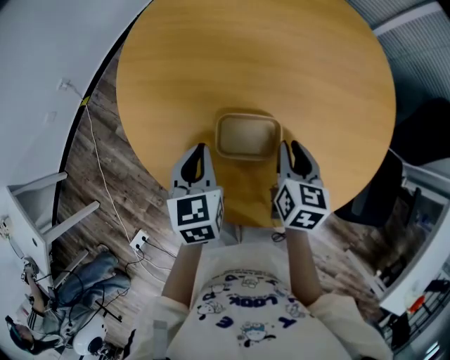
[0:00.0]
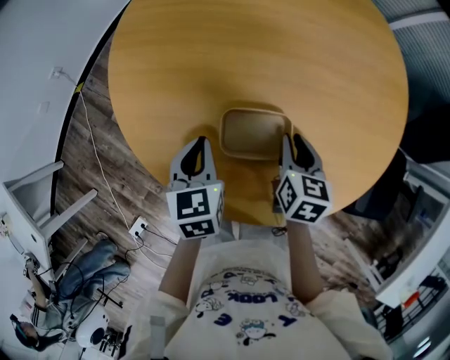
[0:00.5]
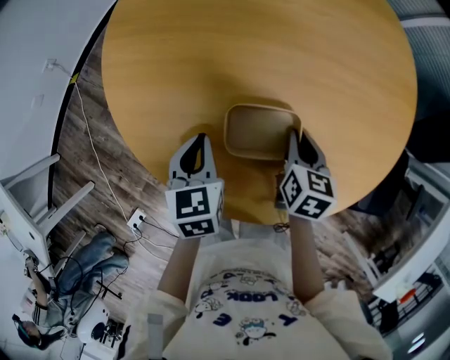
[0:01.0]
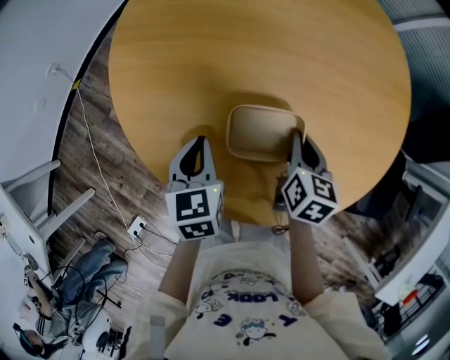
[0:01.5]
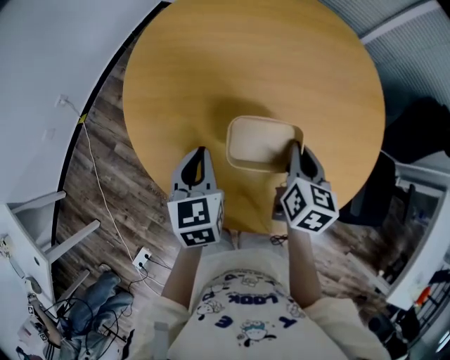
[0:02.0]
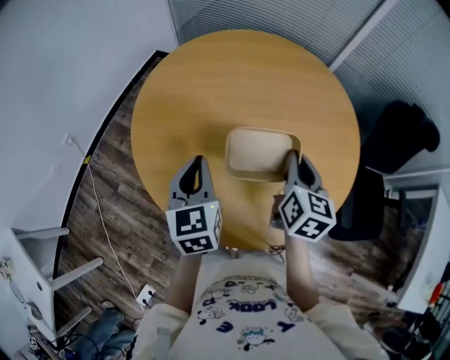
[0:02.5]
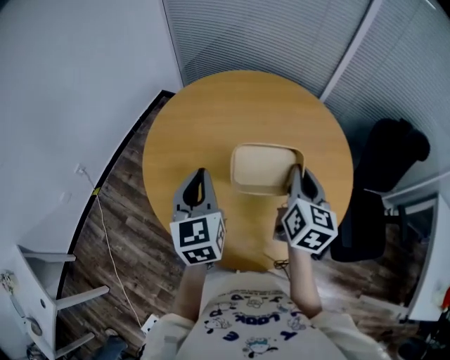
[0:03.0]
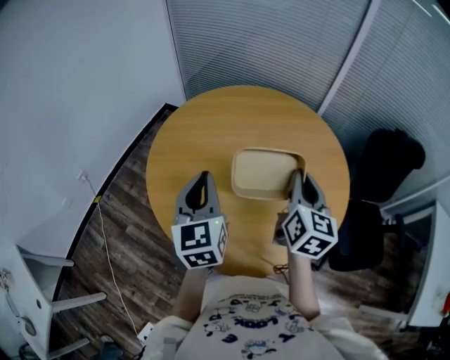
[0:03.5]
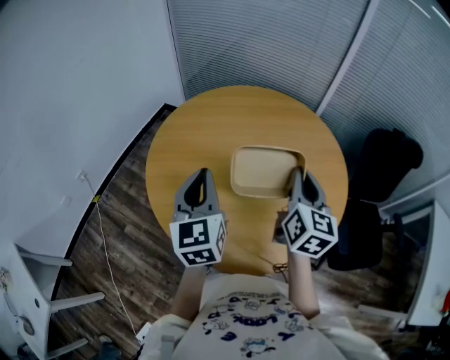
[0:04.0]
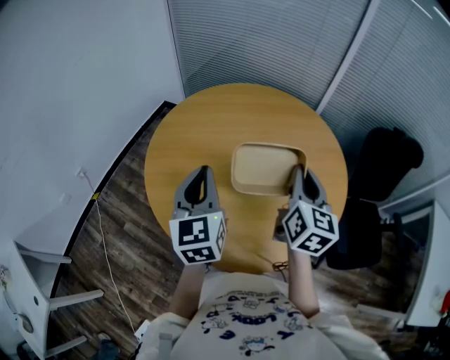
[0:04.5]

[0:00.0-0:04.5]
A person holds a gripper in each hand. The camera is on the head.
0:00.0 to 0:02.0: The right gripper travels upward by roughly 5 cm.
0:02.0 to 0:04.5: Both grippers move upward, some 20 cm. The right gripper rotates roughly 30 degrees; the left gripper turns by about 30 degrees.

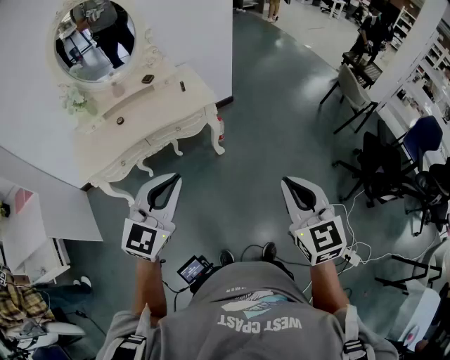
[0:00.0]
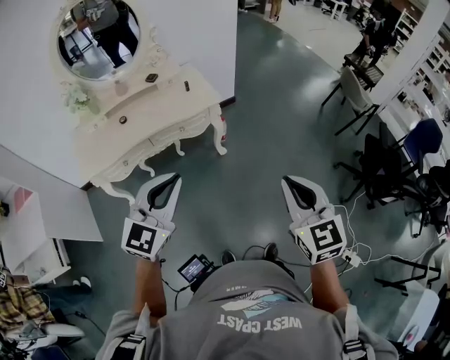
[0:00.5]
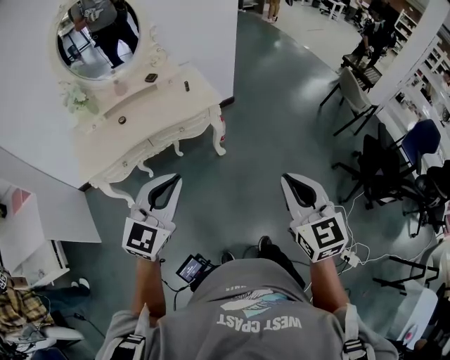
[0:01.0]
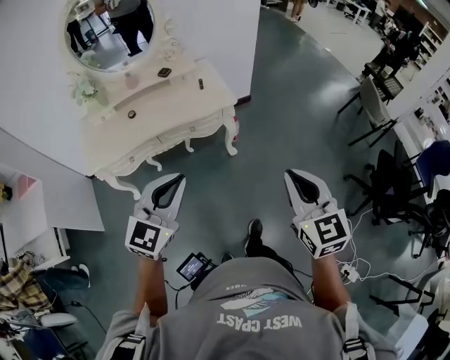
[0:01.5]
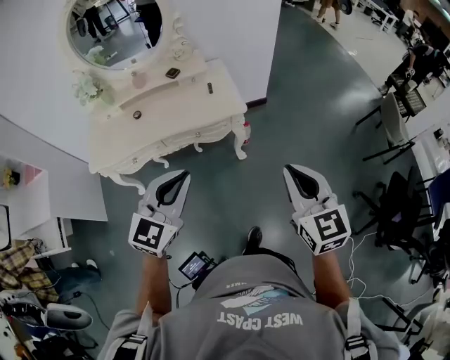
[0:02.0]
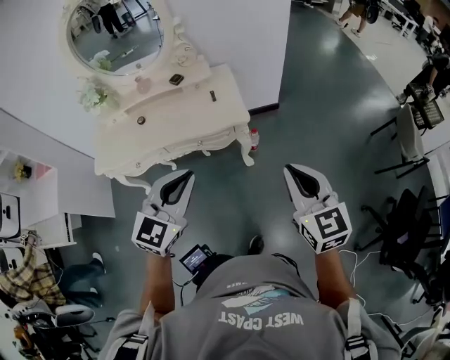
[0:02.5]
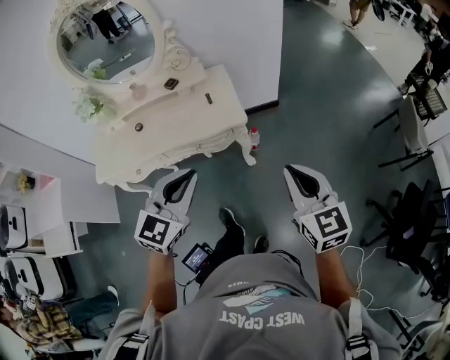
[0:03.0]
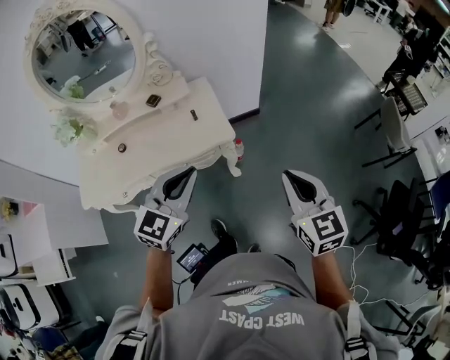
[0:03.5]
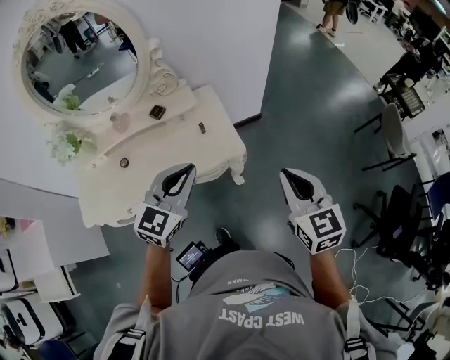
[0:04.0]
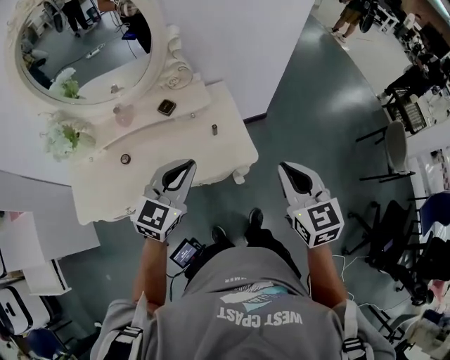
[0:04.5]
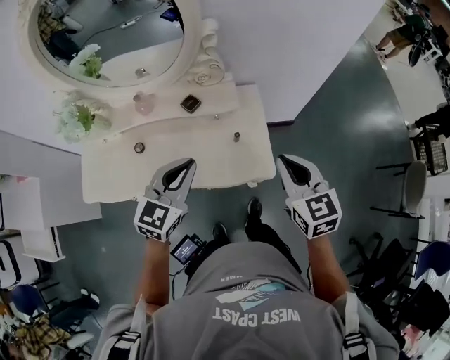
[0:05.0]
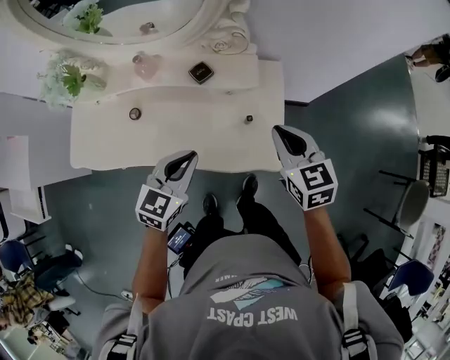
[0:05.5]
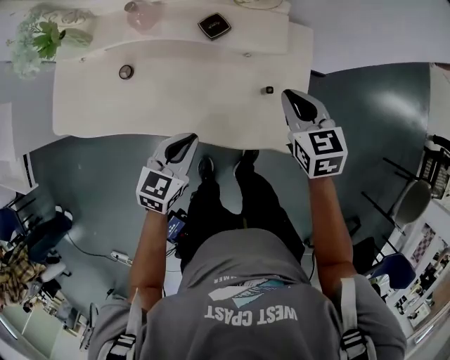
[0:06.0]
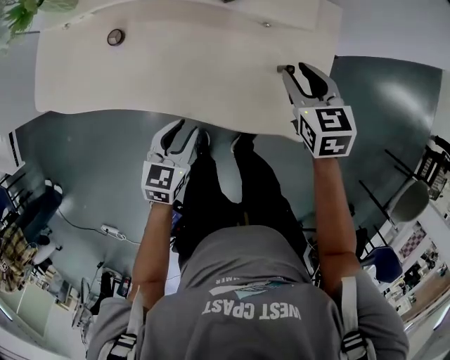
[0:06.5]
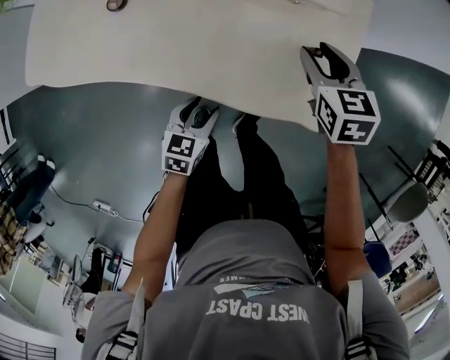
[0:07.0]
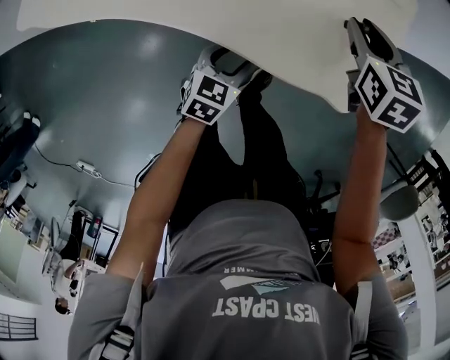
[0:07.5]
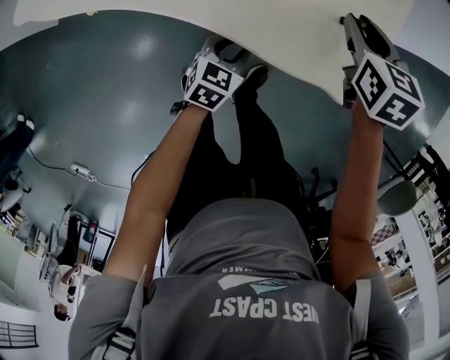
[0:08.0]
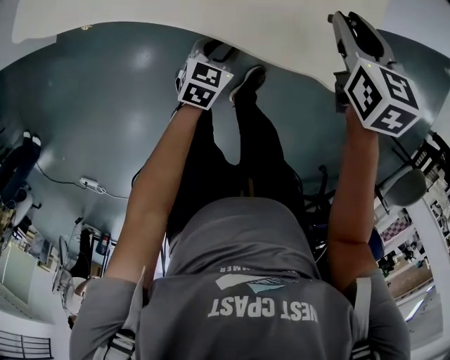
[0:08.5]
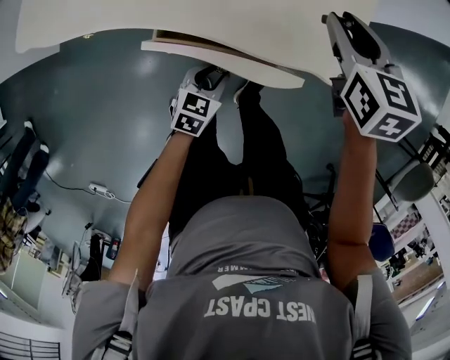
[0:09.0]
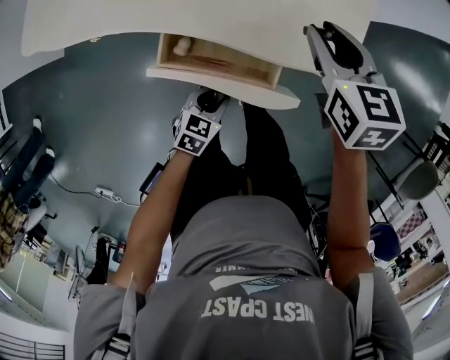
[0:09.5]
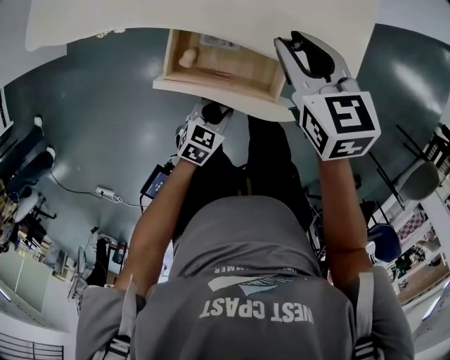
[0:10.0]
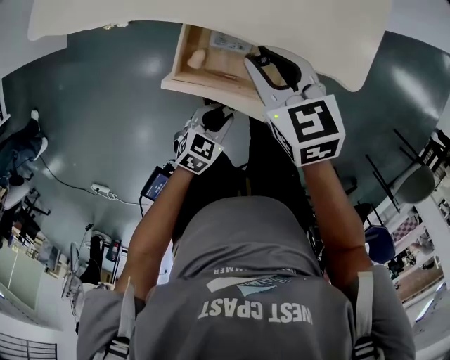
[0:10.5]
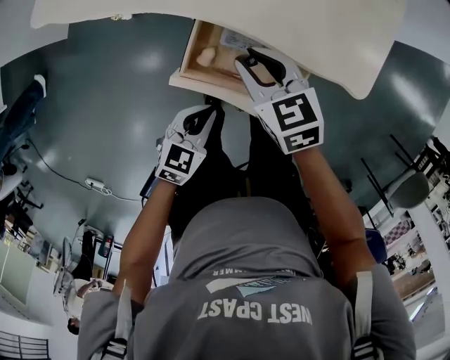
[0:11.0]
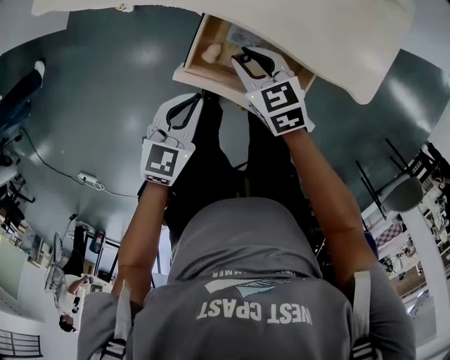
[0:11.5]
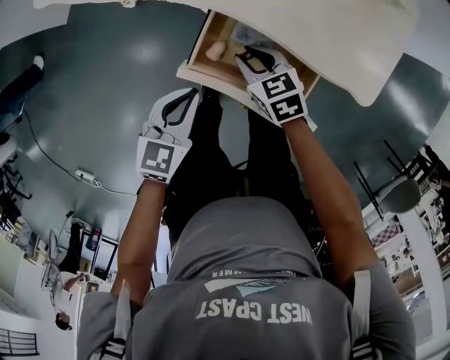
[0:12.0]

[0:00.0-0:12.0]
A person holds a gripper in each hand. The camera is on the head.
0:00.0 to 0:02.0: The two grippers go about 20 cm forward.
0:02.0 to 0:04.0: The grippers both shift forward by about 30 cm.
0:04.0 to 0:06.0: The left gripper is displaced downward by about 30 cm, and swivels approximately 40 degrees. The right gripper shifts by about 50 cm, and changes its angle by some 40 degrees.
0:06.0 to 0:08.0: The left gripper travels downward by about 20 cm, and opens its fingers. The right gripper heads downward, covering approximately 10 cm, and opens its fingers.
0:08.0 to 0:10.0: The right gripper shifts some 15 cm backward, to the left and upward. The left gripper goes roughly 20 cm backward.
0:10.0 to 0:12.0: The right gripper goes roughly 15 cm downward, and rotates roughly 20 degrees; the left gripper changes place by roughly 20 cm, rotates roughly 30 degrees, and closes its fingers.

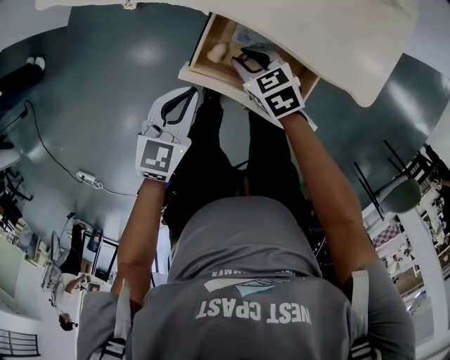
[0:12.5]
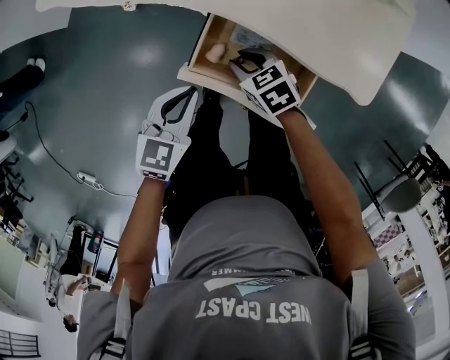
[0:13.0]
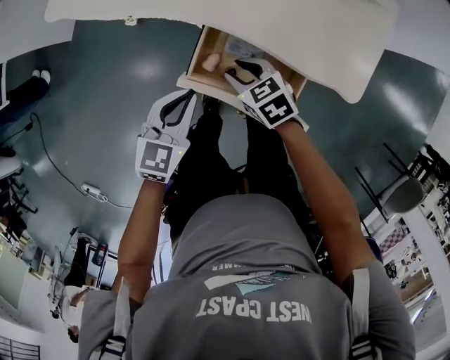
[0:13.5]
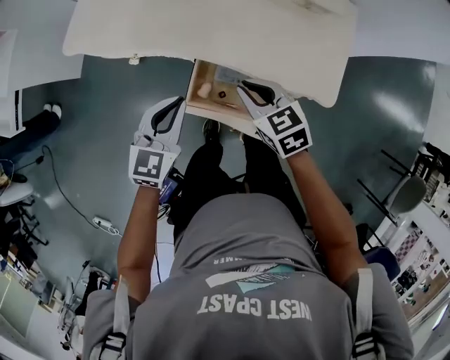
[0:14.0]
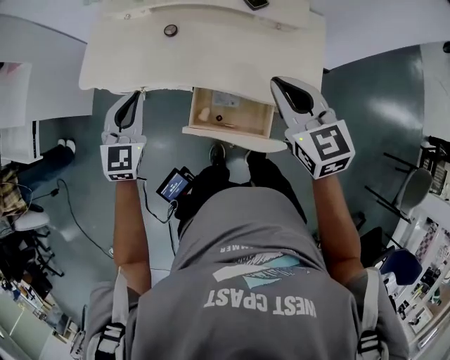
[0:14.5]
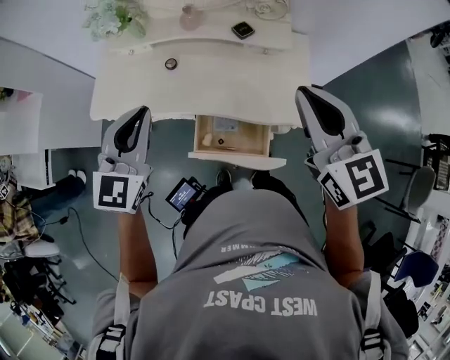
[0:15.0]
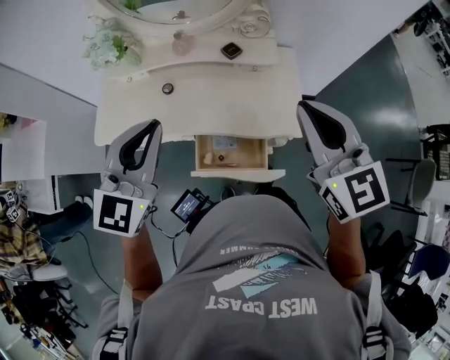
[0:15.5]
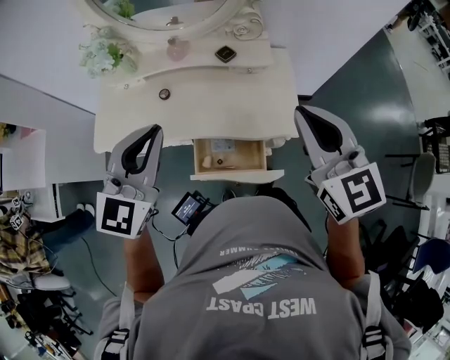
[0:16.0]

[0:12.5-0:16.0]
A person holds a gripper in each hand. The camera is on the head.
0:12.5 to 0:14.5: The left gripper travels upward and forward by roughly 30 cm, and changes its angle by about 40 degrees. Meanwhile the right gripper moves upward, roughly 40 cm, swivels some 40 degrees, and closes its fingers.
0:14.5 to 0:16.0: The left gripper is displaced upward and to the right by some 25 cm, and swivels roughly 30 degrees. Meanwhile the right gripper travels upward by roughly 20 cm.

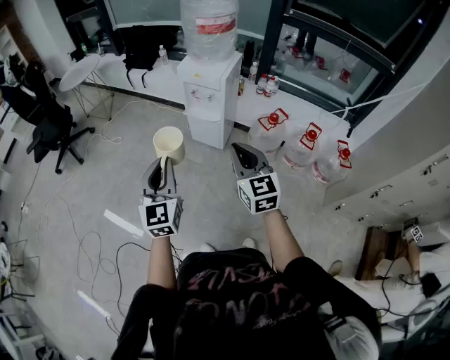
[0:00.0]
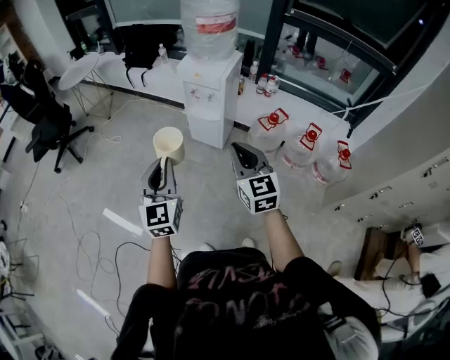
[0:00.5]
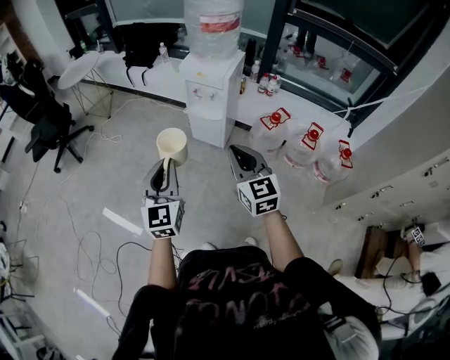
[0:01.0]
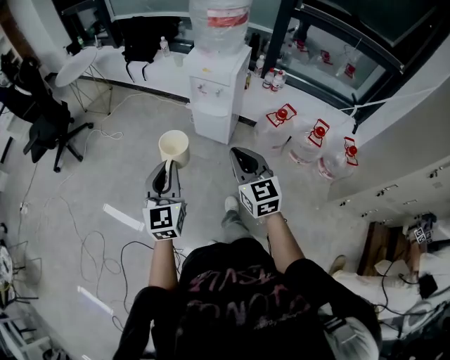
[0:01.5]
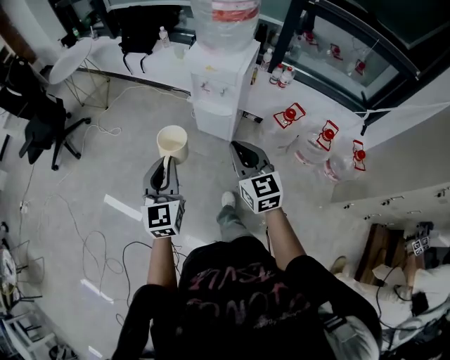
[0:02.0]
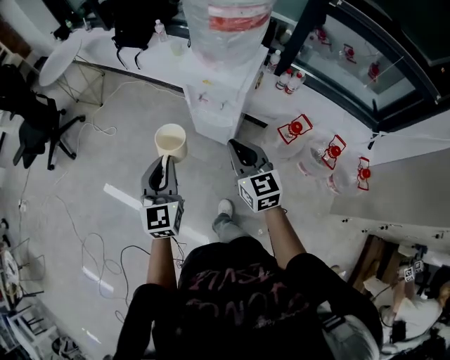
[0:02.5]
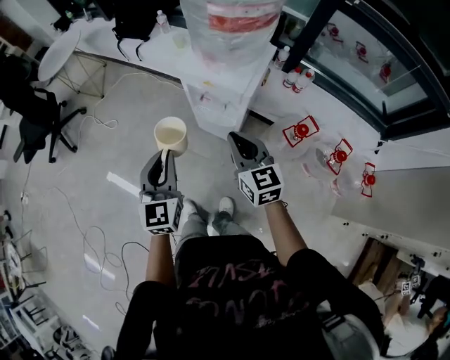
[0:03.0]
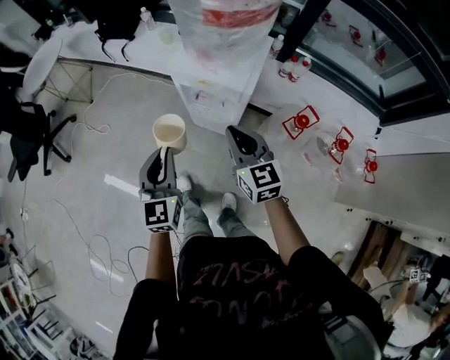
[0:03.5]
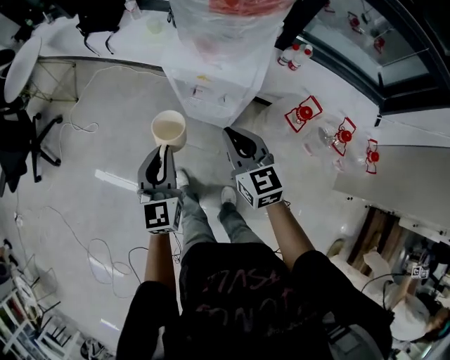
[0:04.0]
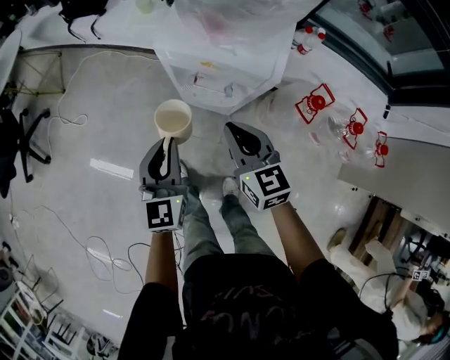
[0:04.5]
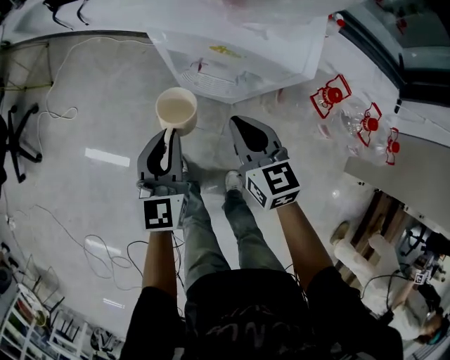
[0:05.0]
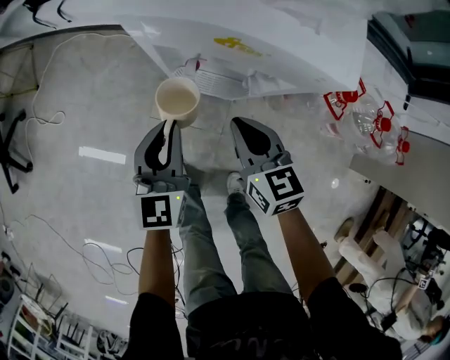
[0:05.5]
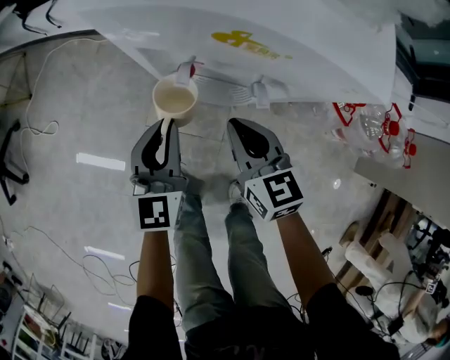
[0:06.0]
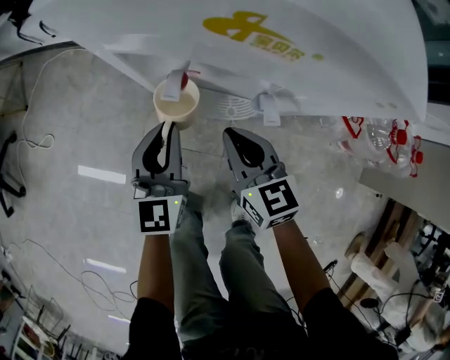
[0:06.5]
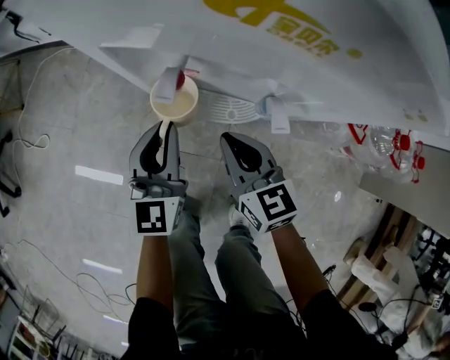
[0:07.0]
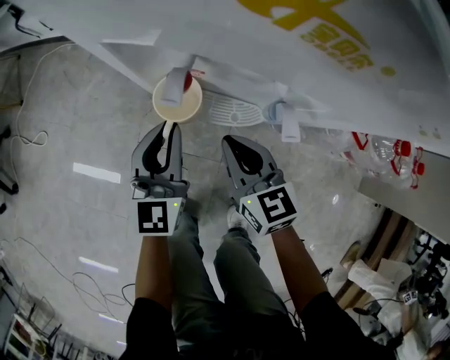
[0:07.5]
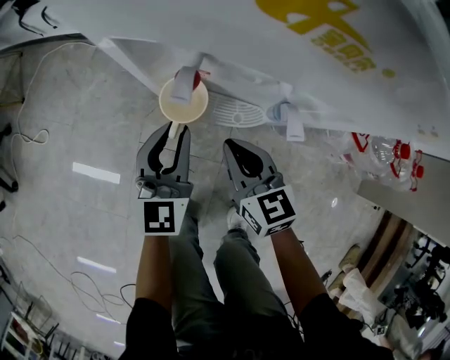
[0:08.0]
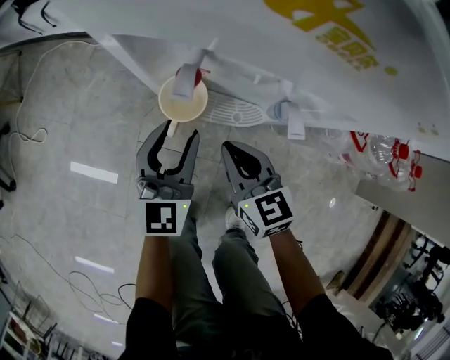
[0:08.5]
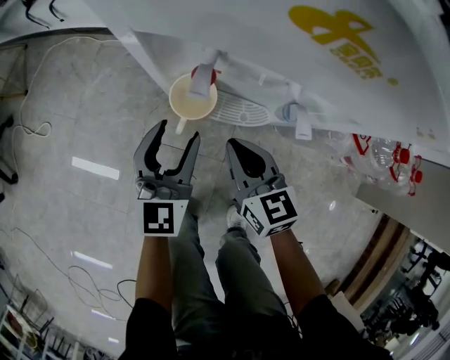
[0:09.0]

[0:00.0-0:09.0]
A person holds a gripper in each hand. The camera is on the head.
0:00.0 to 0:02.0: Both grippers move forward and downward, roughly 15 cm.
0:02.0 to 0:04.5: The grippers both shift forward and downward by roughly 40 cm.
0:04.5 to 0:07.0: The right gripper travels downward by about 30 cm. The left gripper shifts some 30 cm downward and forward.
0:07.0 to 0:09.0: The left gripper opens its fingers.
